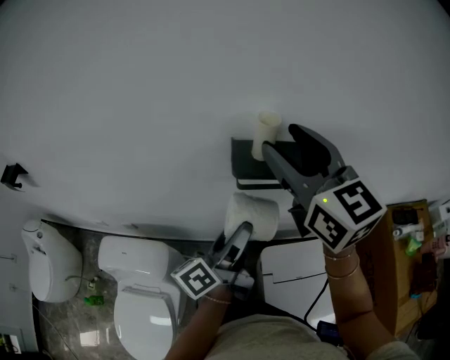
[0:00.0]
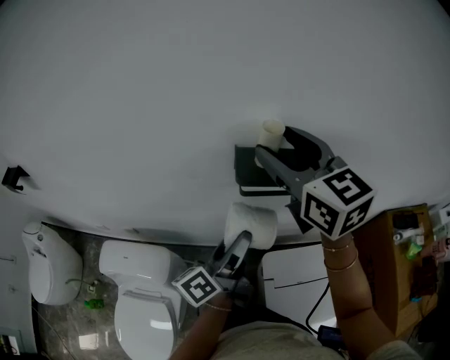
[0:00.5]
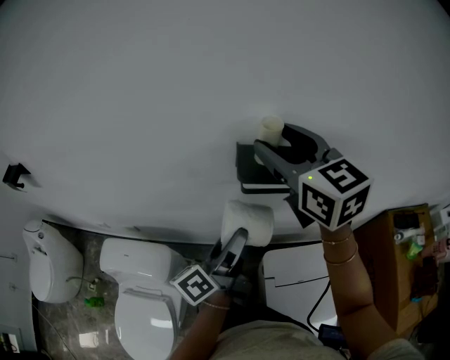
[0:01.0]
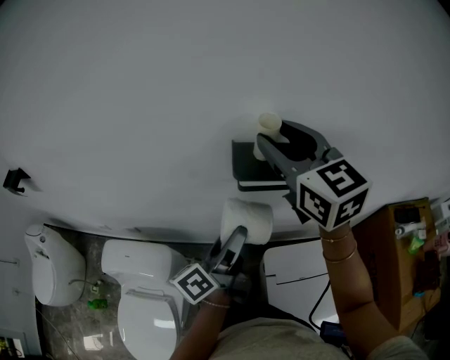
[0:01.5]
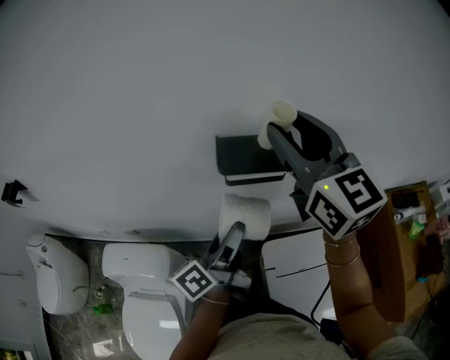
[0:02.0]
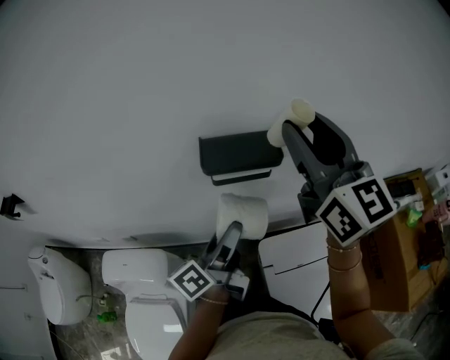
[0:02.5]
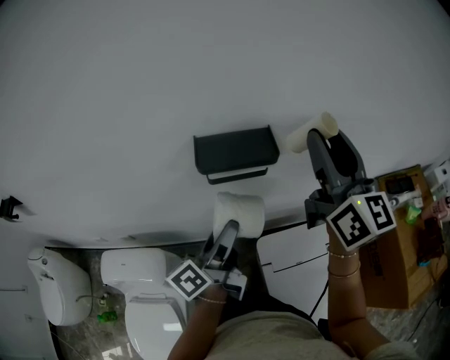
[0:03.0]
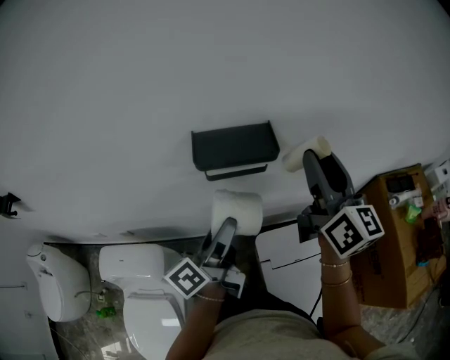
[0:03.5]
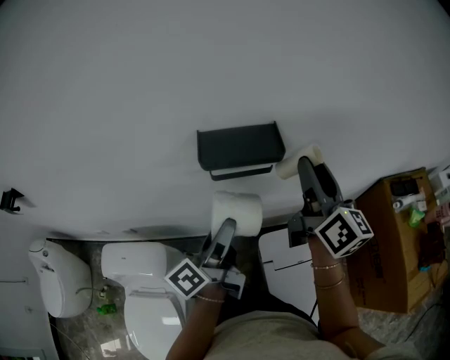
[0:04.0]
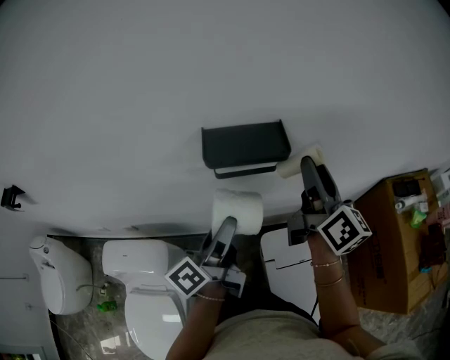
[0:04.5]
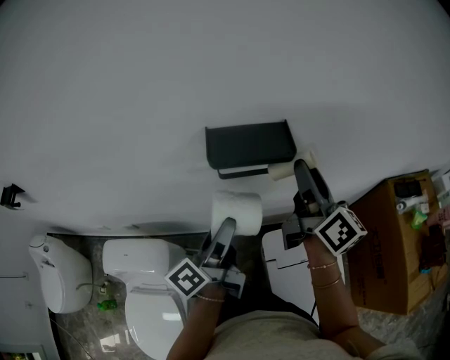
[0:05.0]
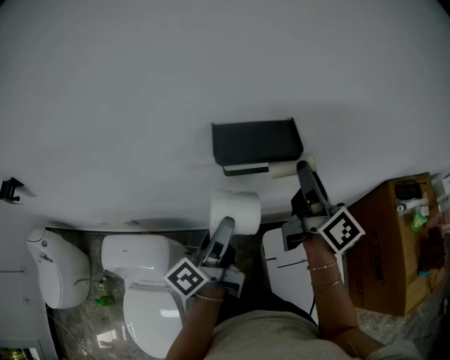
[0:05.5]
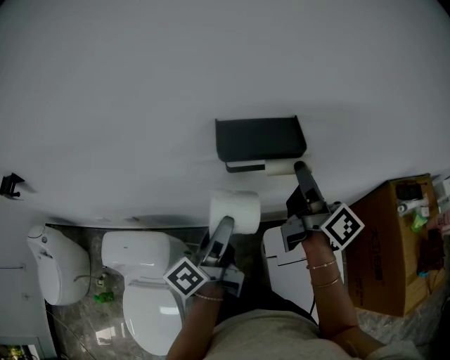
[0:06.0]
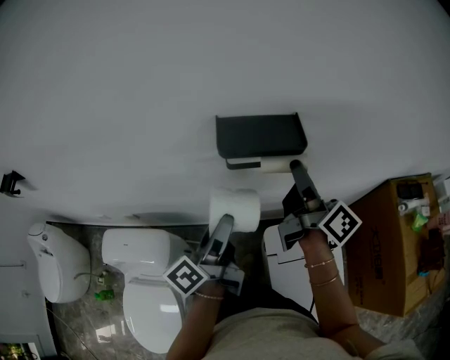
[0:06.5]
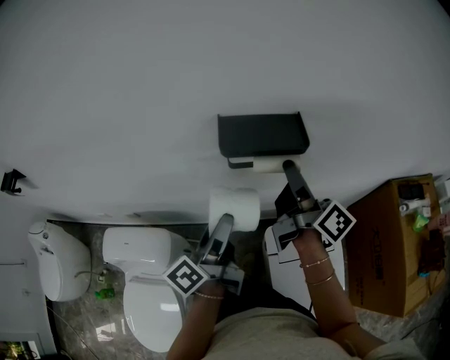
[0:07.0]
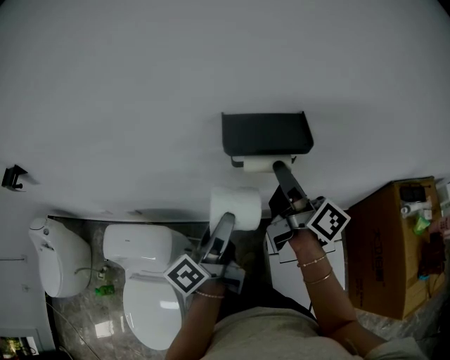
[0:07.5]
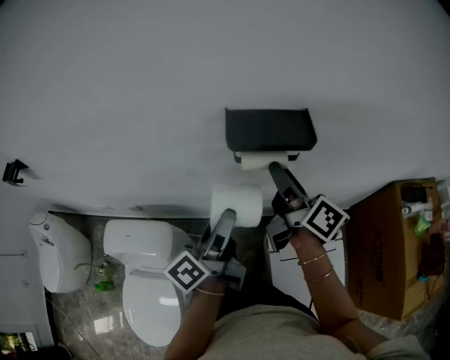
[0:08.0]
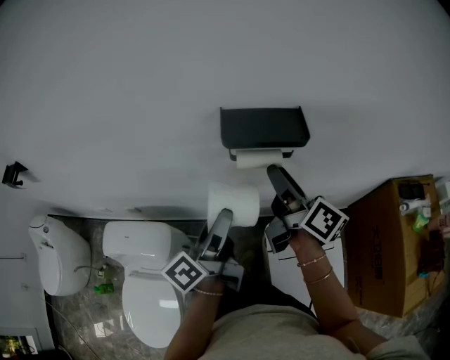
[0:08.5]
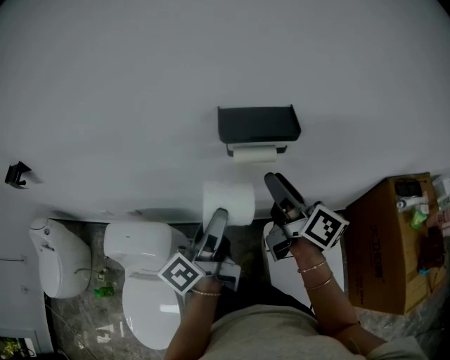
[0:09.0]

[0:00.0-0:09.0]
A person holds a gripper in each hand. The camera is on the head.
0:00.0 to 0:02.0: The grippers stay close to where they were, moving slightly.
0:02.0 to 0:04.5: The right gripper heads downward and to the right, covering roughly 20 cm, and changes its angle by roughly 40 degrees.
0:04.5 to 0:07.0: The right gripper shifts approximately 10 cm to the left and downward, and turns by about 30 degrees.
0:07.0 to 0:09.0: The right gripper travels backward by approximately 5 cm.

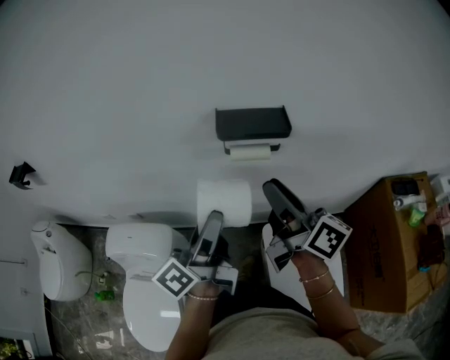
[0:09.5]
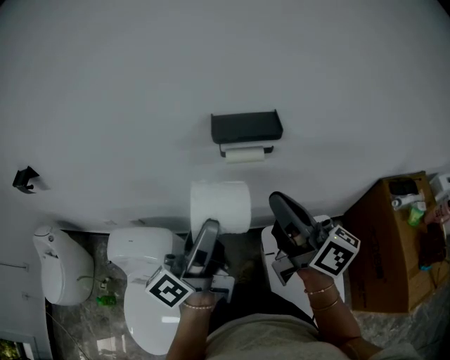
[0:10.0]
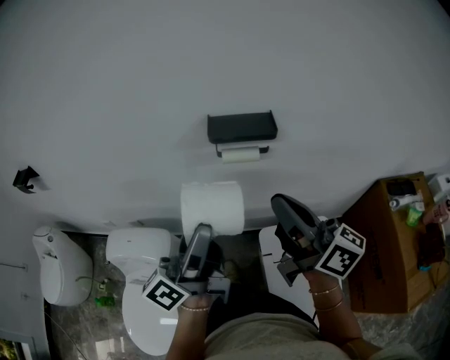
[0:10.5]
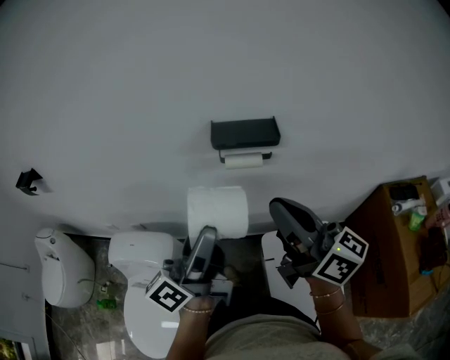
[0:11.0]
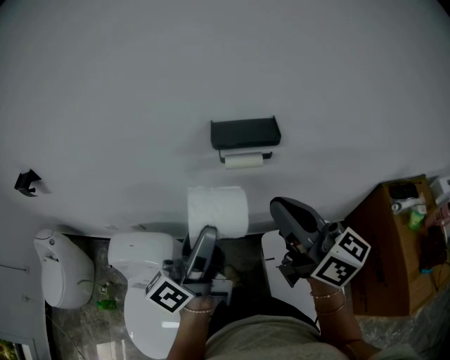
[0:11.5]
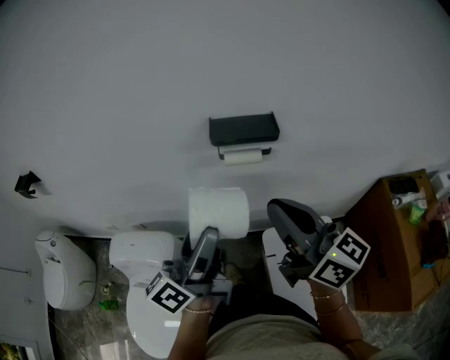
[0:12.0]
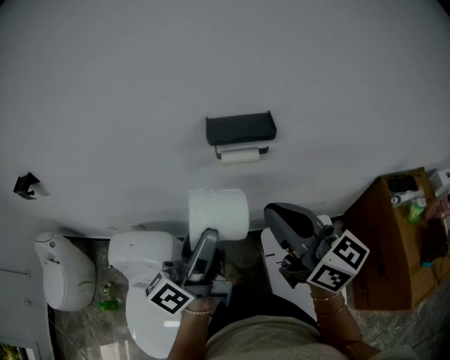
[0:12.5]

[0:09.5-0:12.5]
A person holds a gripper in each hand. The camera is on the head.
0:09.5 to 0:11.0: The right gripper heads backward and upward, covering roughly 10 cm, and closes its fingers; the left gripper goes about 5 cm upward.
0:11.0 to 0:12.5: The grippers move only a little.

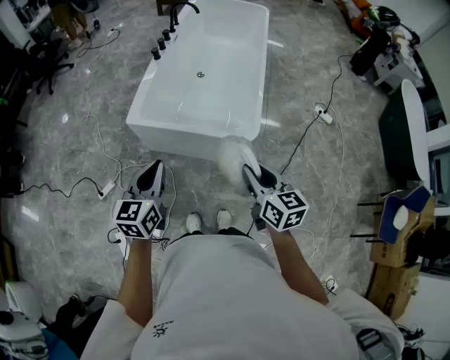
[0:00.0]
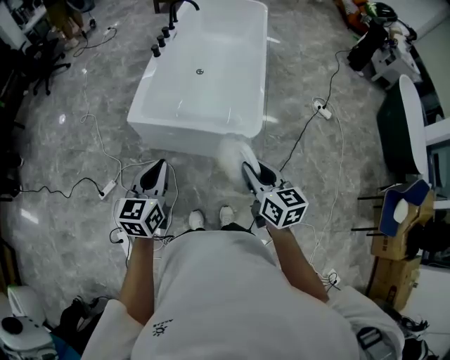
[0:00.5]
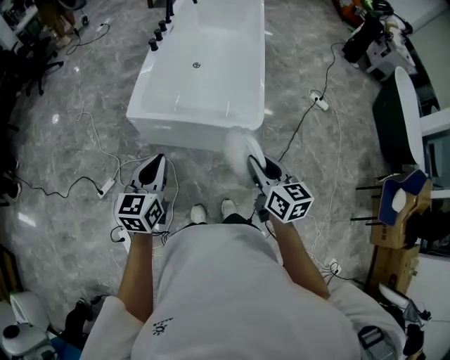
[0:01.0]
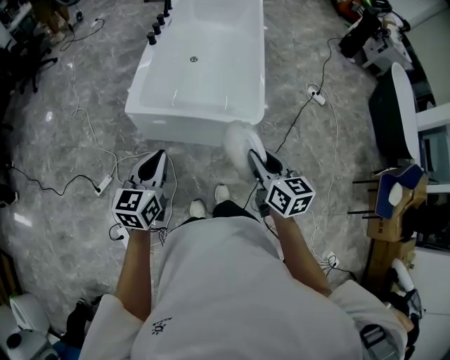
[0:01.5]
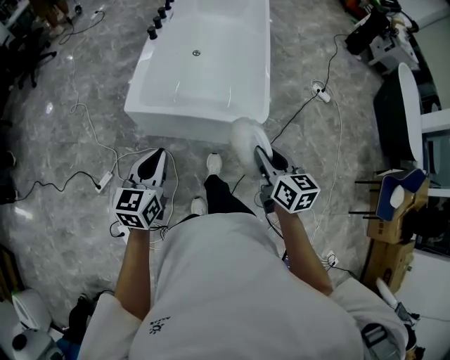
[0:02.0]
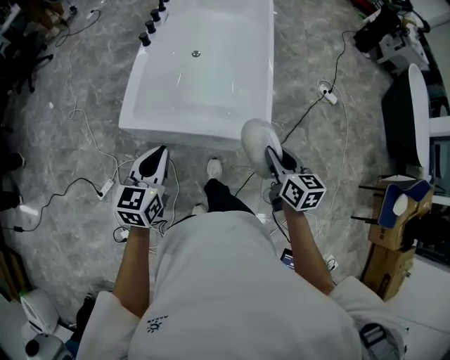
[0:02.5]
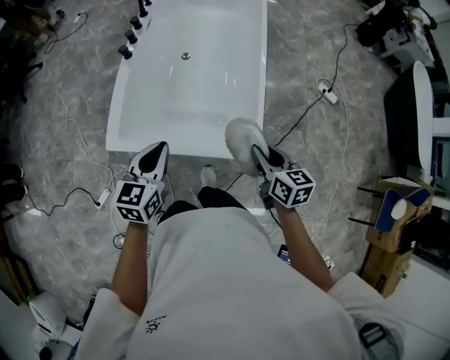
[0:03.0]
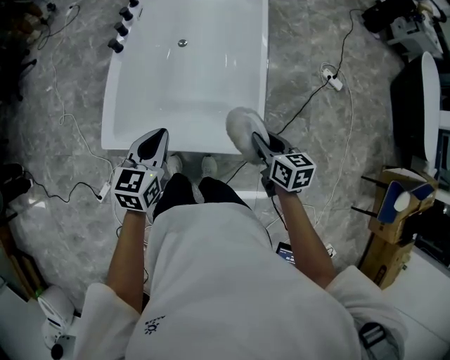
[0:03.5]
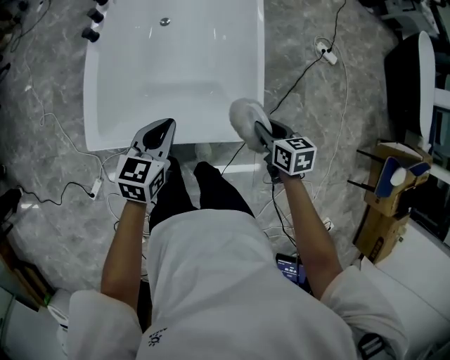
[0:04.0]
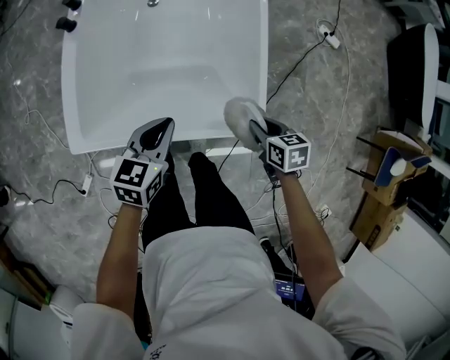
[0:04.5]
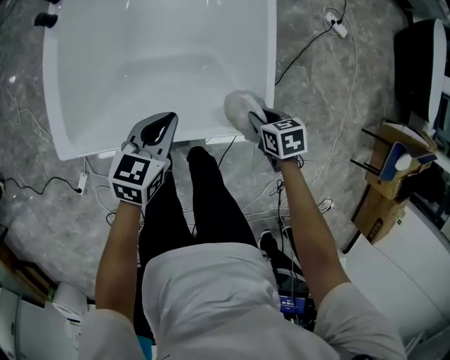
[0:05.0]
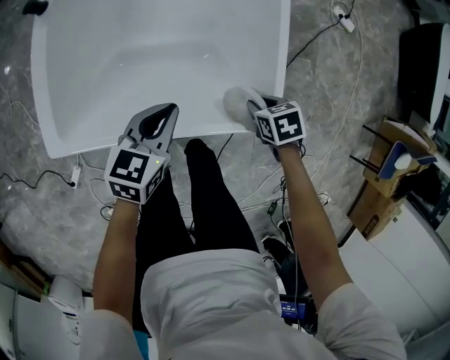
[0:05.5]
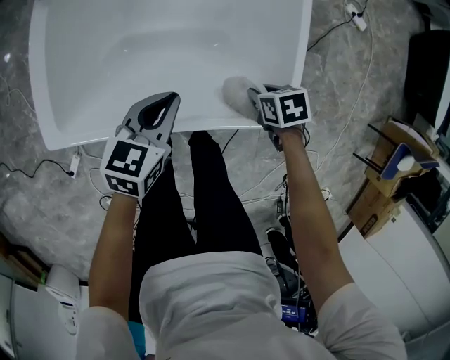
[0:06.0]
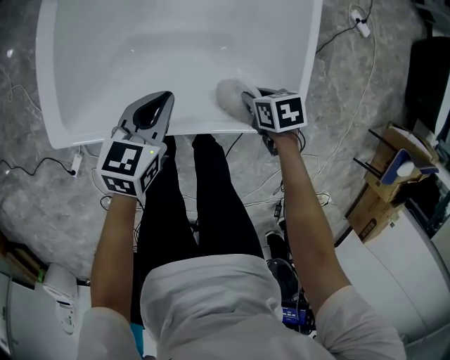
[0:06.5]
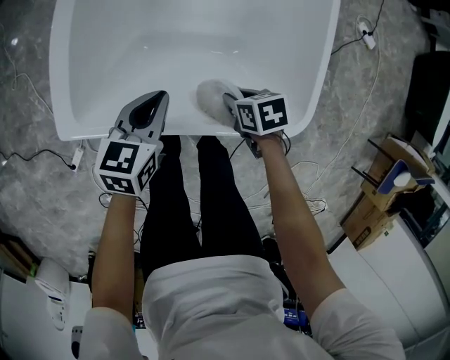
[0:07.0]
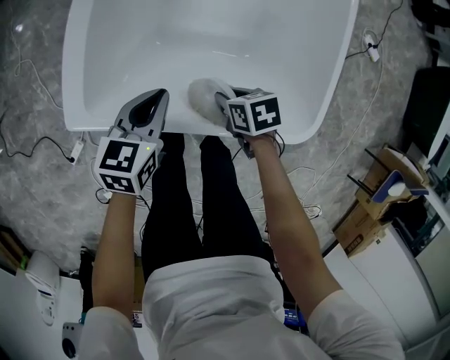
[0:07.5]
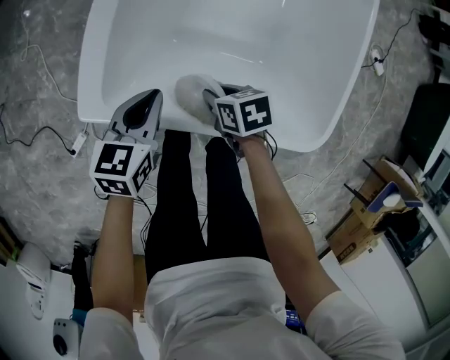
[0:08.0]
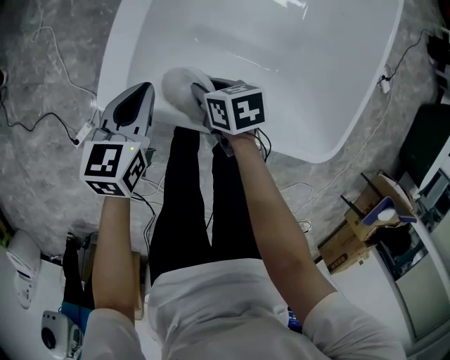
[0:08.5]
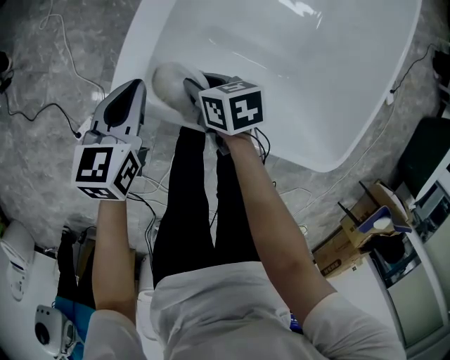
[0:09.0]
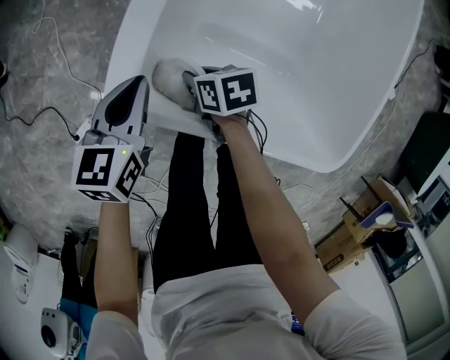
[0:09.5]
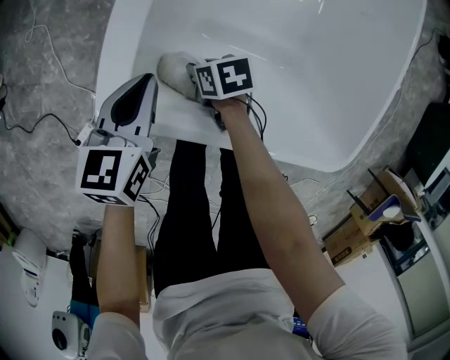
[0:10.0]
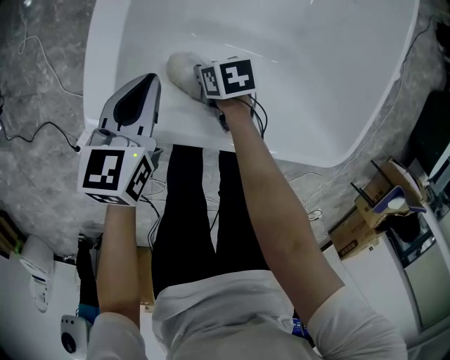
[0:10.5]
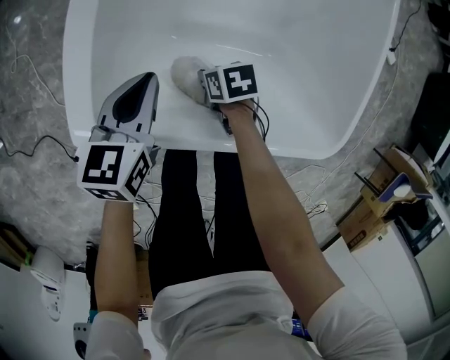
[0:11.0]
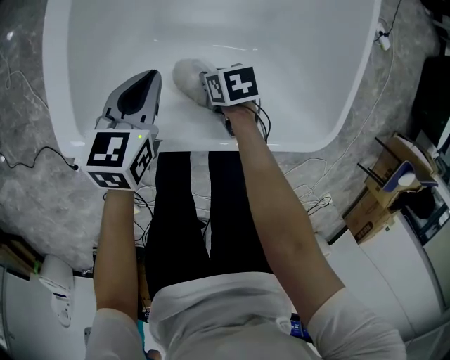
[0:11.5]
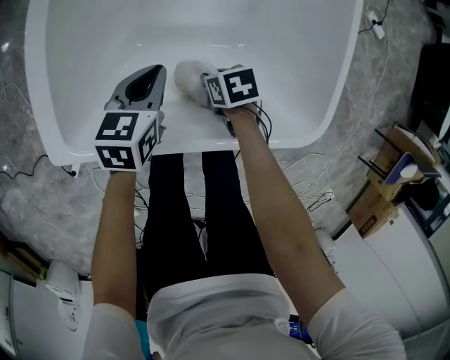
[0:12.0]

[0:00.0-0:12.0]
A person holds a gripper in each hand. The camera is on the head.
0:00.0 to 0:02.0: The left gripper travels to the left by about 5 cm; the right gripper changes place by some 5 cm.
0:02.0 to 0:04.0: The left gripper goes about 35 cm forward, to the right and downward, and rotates some 20 degrees; the right gripper moves forward, downward and to the right, some 35 cm, and changes its angle by about 30 degrees.
0:04.0 to 0:06.0: The two grippers go roughly 20 cm downward. The right gripper turns by approximately 30 degrees.
0:06.0 to 0:08.0: The left gripper moves about 20 cm, and changes its angle by approximately 20 degrees, while the right gripper shifts by about 30 cm.
0:08.0 to 0:10.0: The left gripper is displaced forward and to the left by some 10 cm, while the right gripper goes some 15 cm forward, to the left and downward.
0:10.0 to 0:12.0: The left gripper heads to the right, covering approximately 20 cm, and swivels some 20 degrees, while the right gripper moves to the right and backward, some 25 cm.

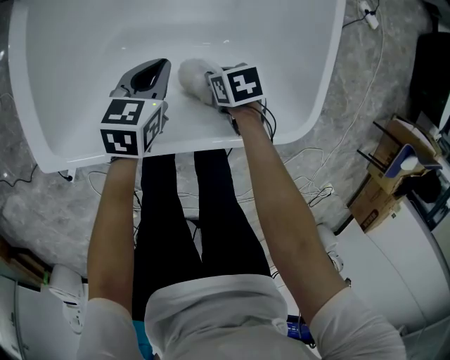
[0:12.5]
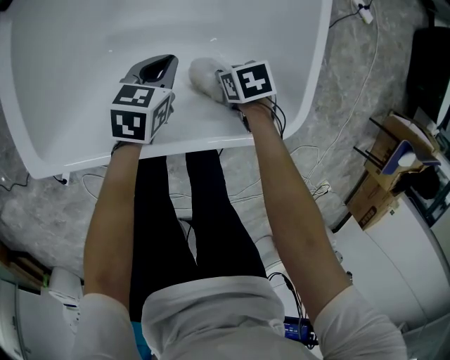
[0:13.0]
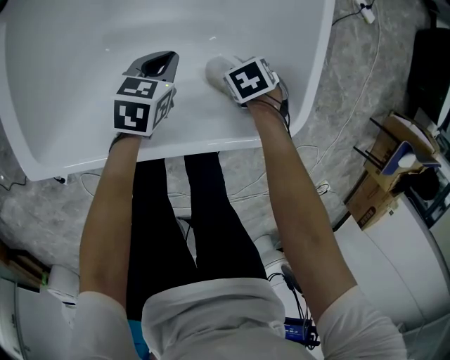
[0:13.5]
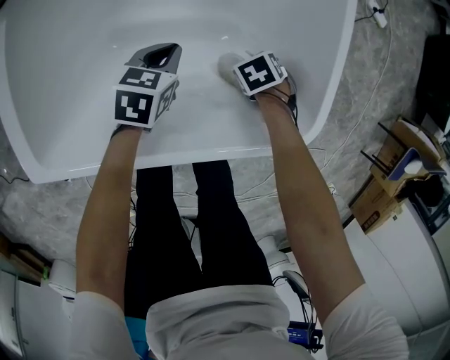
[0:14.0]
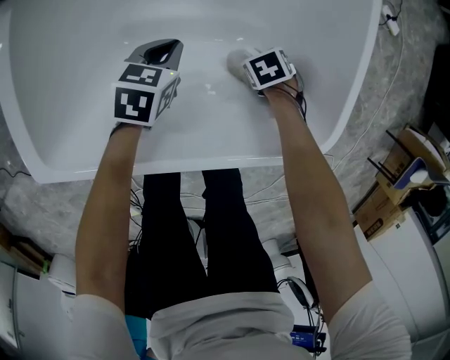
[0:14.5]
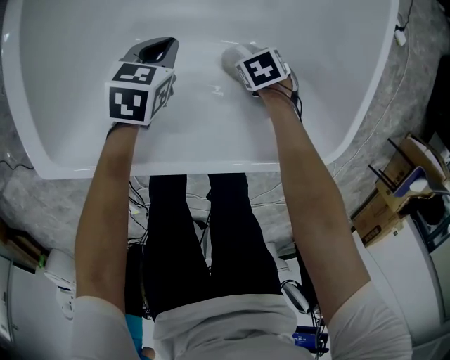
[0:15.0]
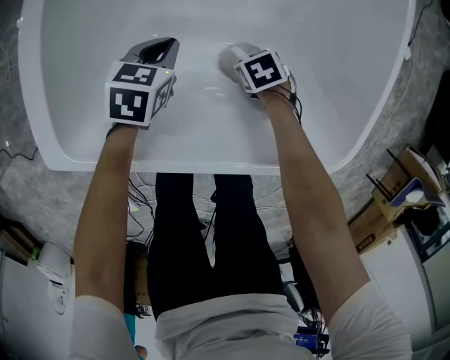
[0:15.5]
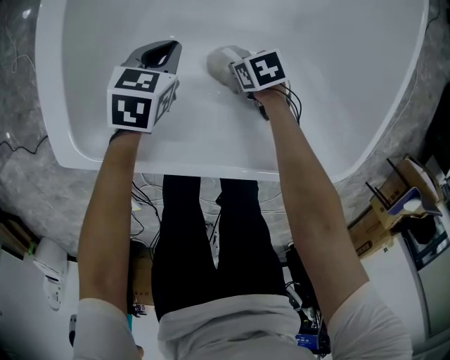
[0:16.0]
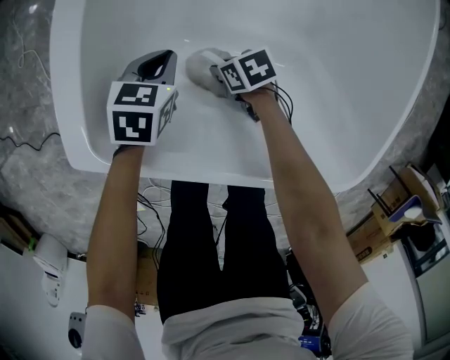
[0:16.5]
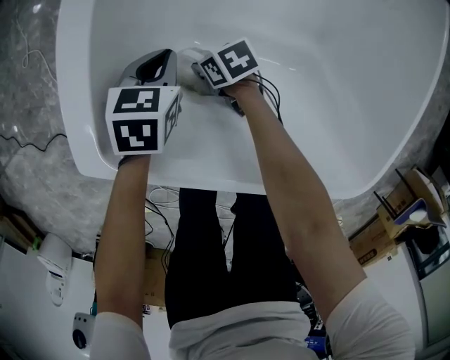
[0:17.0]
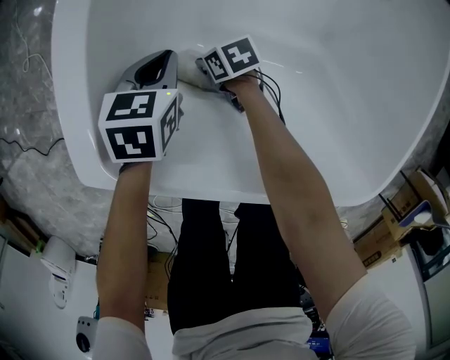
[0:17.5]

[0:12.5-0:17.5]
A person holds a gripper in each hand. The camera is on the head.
0:12.5 to 0:15.0: Both grippers travel together downward, roughly 10 cm. The right gripper swivels some 20 degrees.
0:15.0 to 0:17.5: The left gripper ends up some 15 cm from where it was. Meanwhile the right gripper ends up about 30 cm from where it was, and changes its angle by roughly 30 degrees.
